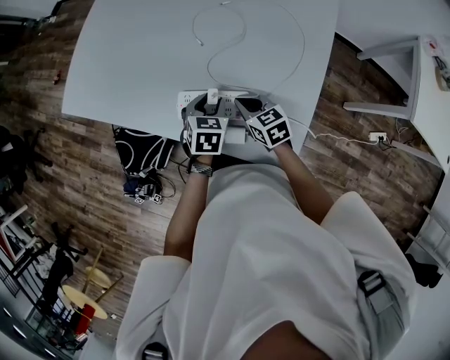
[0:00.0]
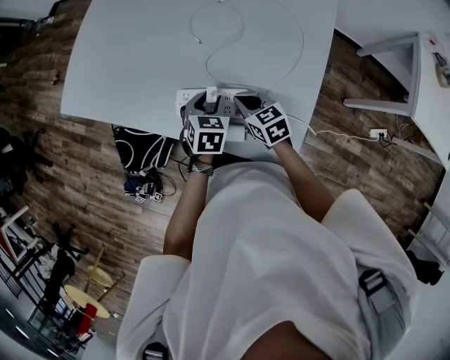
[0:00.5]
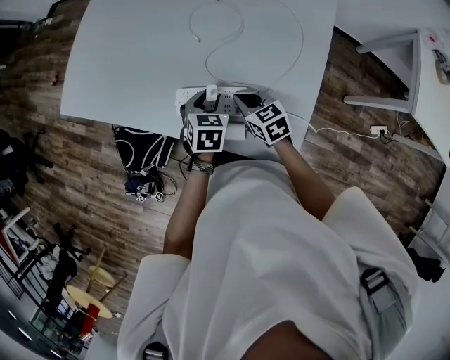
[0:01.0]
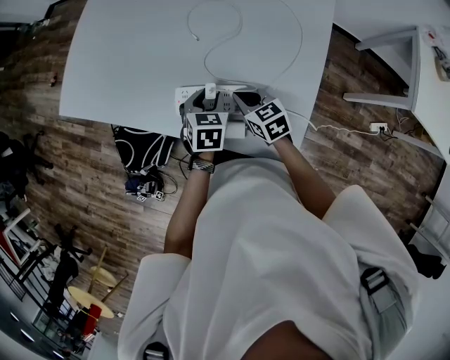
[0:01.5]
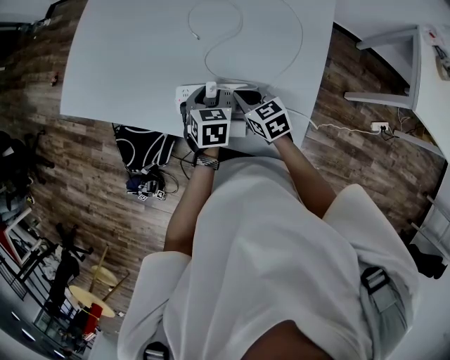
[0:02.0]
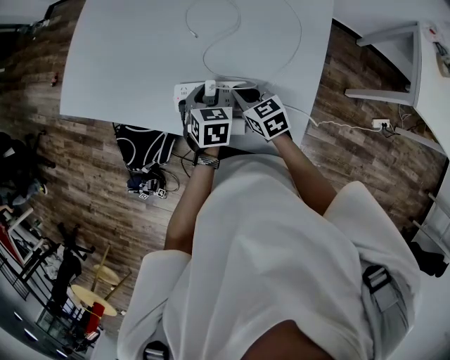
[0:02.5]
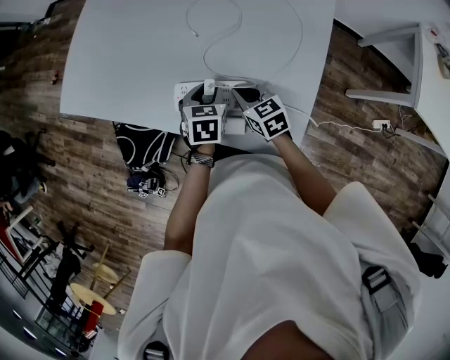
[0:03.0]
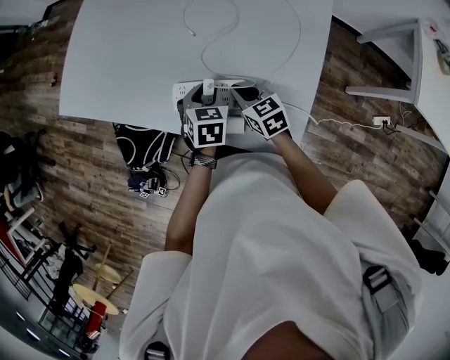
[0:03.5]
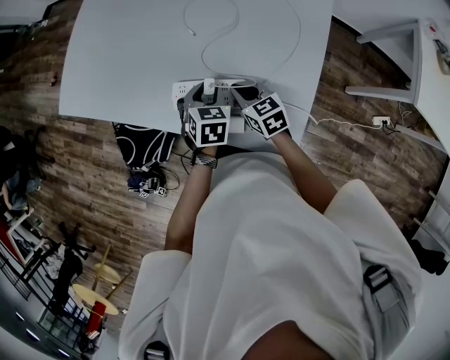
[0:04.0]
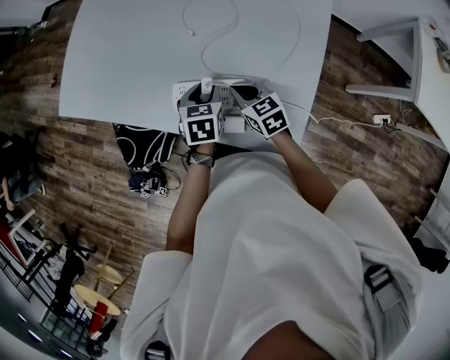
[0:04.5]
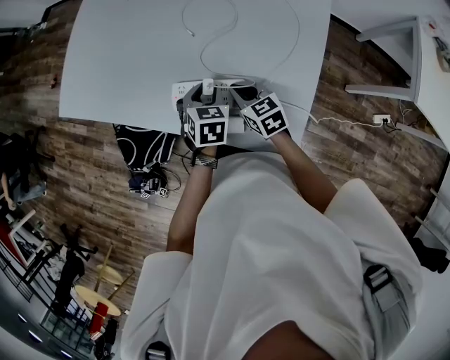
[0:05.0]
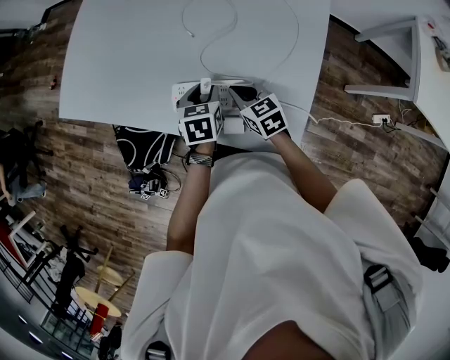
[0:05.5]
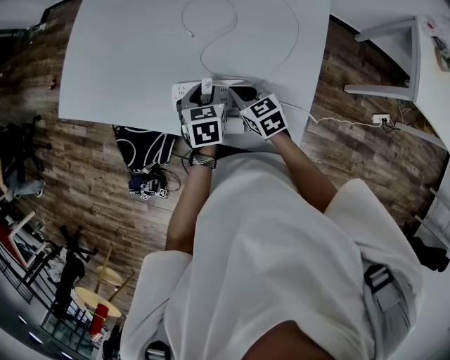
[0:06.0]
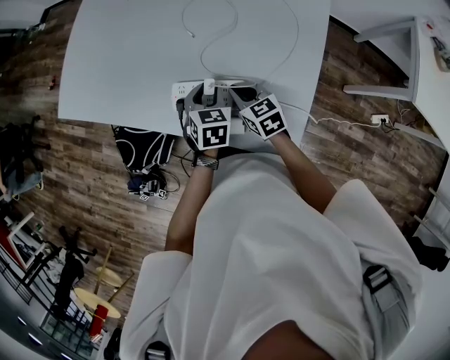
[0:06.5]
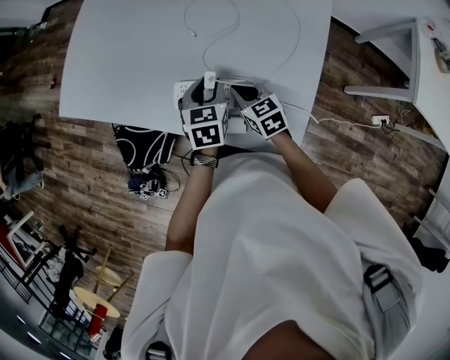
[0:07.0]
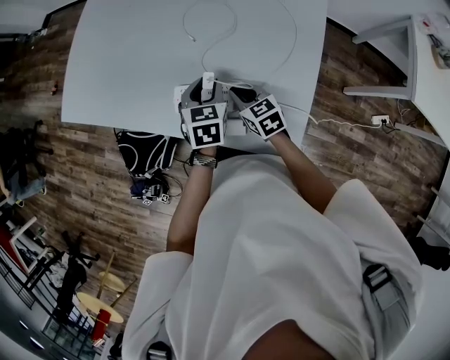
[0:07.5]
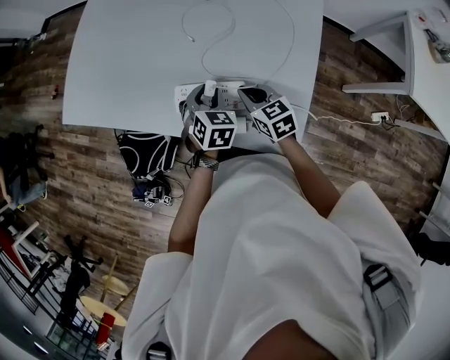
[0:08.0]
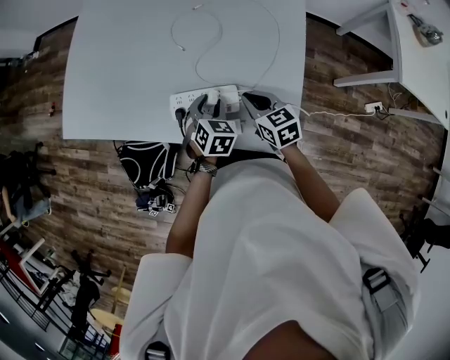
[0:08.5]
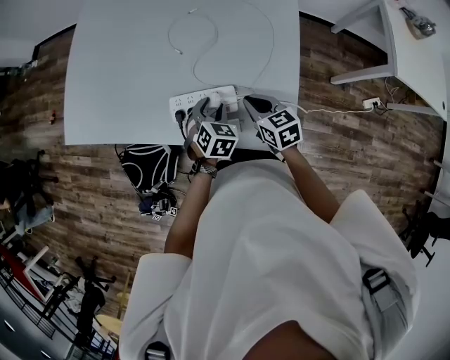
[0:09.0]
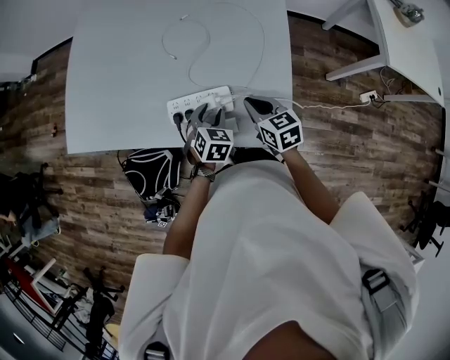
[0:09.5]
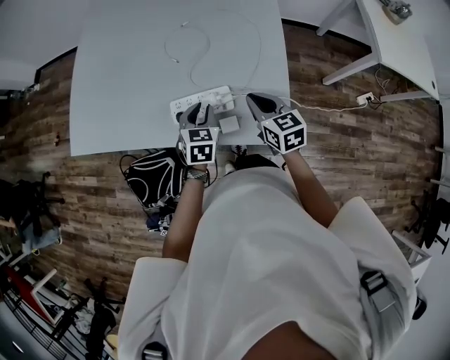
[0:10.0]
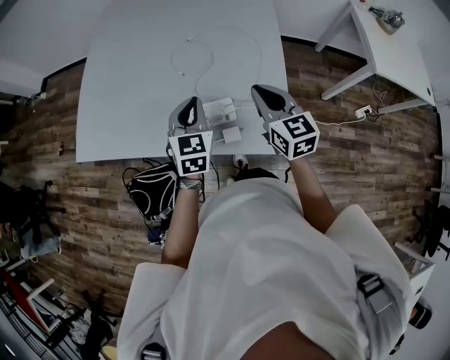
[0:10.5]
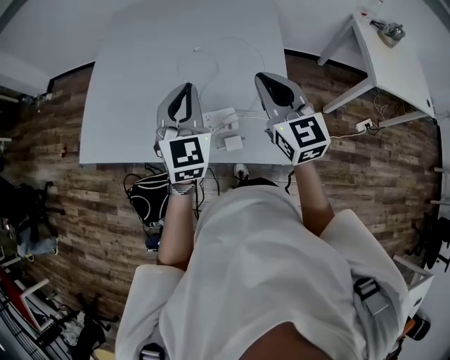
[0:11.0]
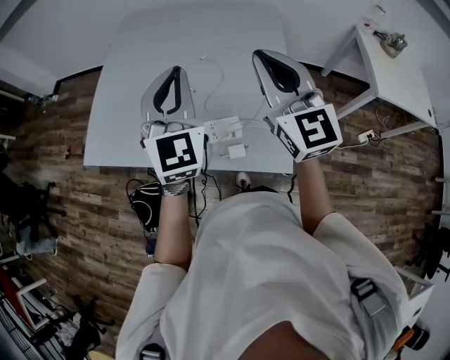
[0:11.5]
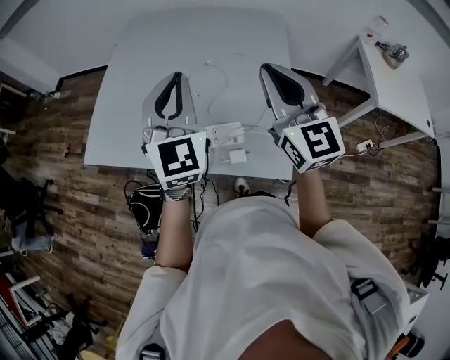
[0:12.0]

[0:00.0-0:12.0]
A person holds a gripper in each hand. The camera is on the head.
0:00.0 to 0:06.0: The grippers stay close to where they were, moving slightly.
0:06.0 to 0:08.0: The left gripper changes its angle by approximately 20 degrees.
0:08.0 to 0:10.0: The left gripper travels upward by approximately 5 cm; the right gripper is displaced upward, backward and to the right by about 15 cm, and changes its angle by roughly 20 degrees.
0:10.0 to 0:12.0: Both grippers travel together upward, roughly 35 cm. The left gripper tilts its fingers approximately 40 degrees upward, and closes its fingers. Meanwhile the right gripper points its fingers approximately 40 degrees further upward.

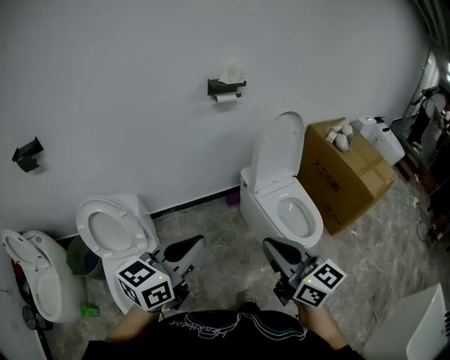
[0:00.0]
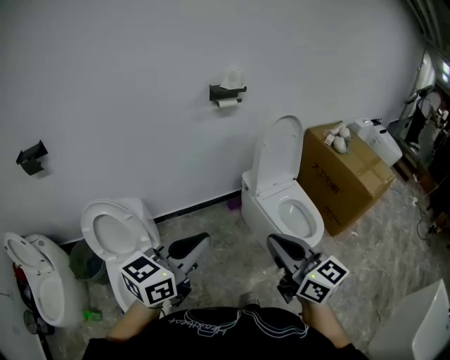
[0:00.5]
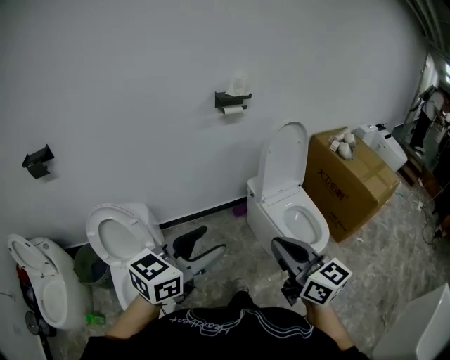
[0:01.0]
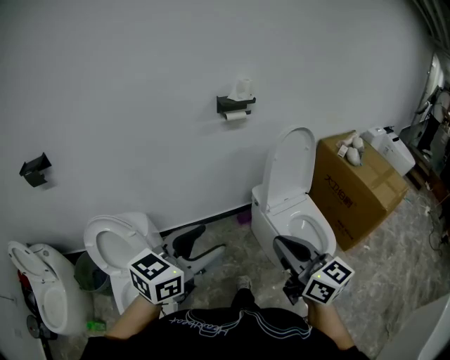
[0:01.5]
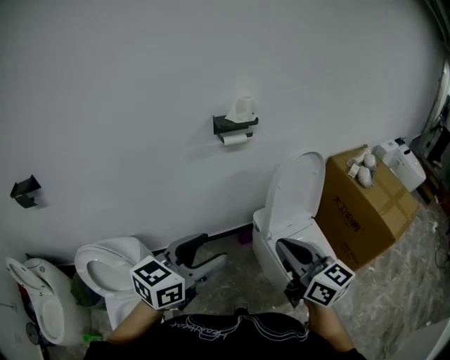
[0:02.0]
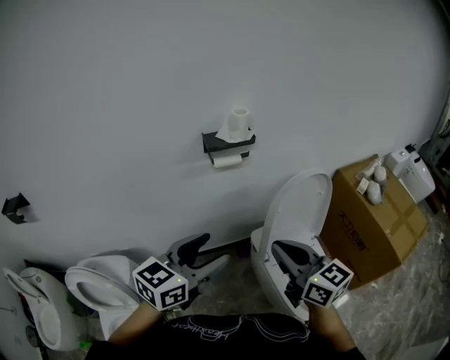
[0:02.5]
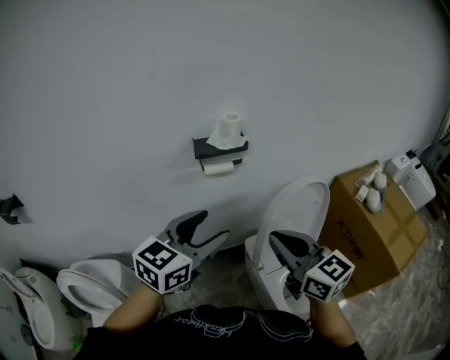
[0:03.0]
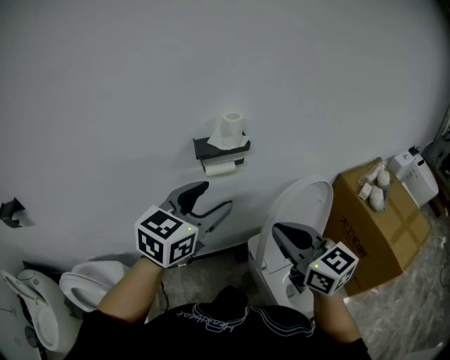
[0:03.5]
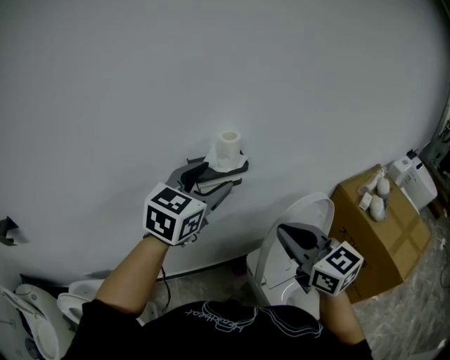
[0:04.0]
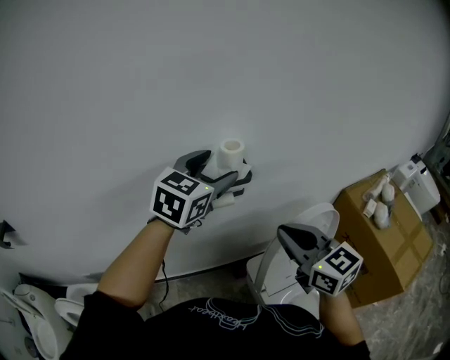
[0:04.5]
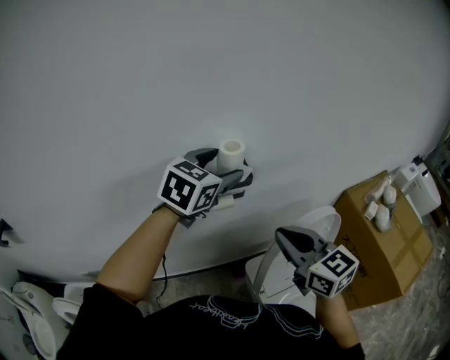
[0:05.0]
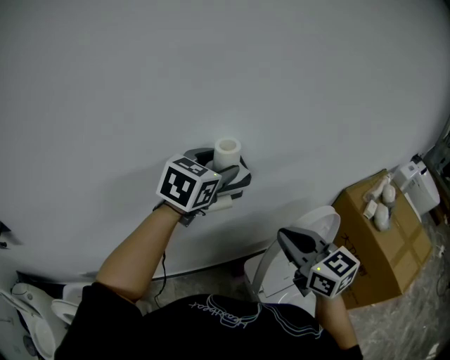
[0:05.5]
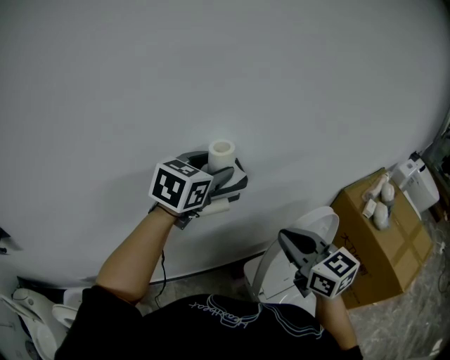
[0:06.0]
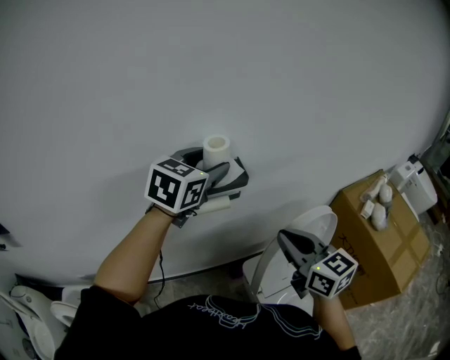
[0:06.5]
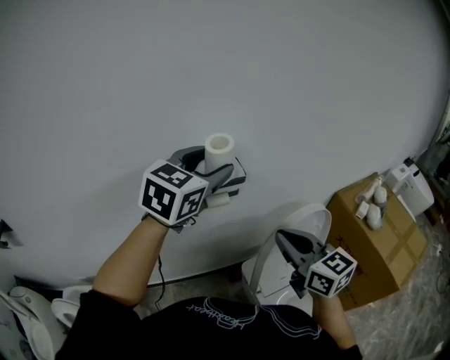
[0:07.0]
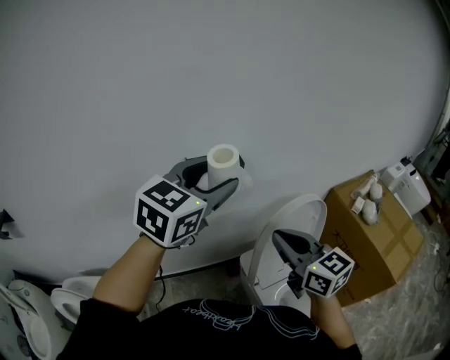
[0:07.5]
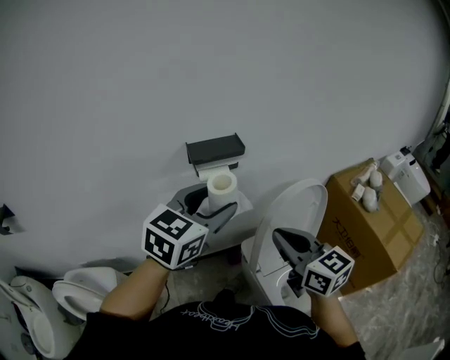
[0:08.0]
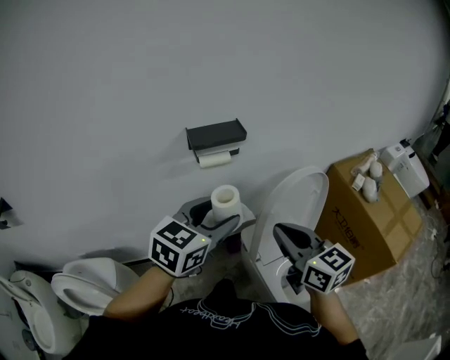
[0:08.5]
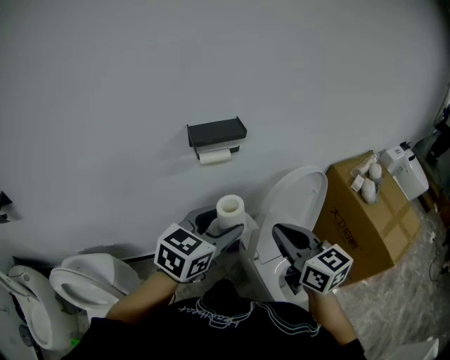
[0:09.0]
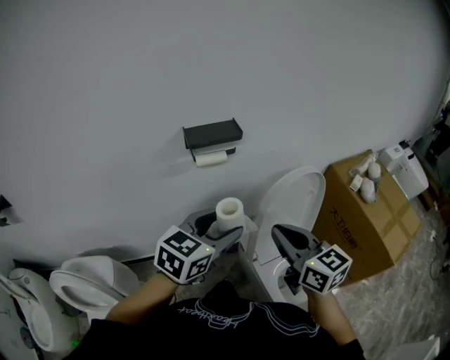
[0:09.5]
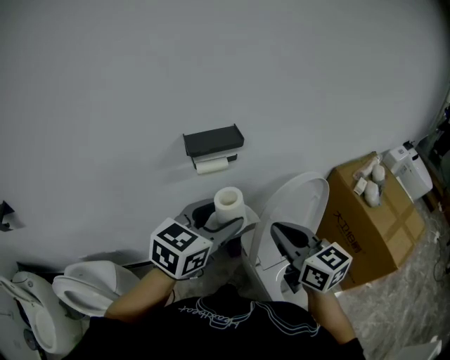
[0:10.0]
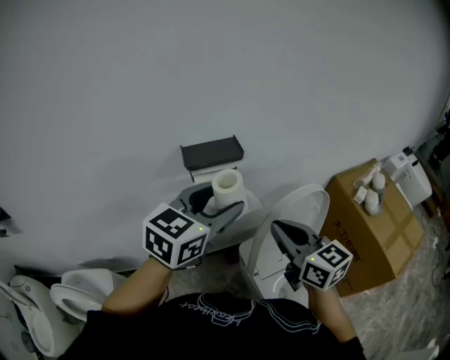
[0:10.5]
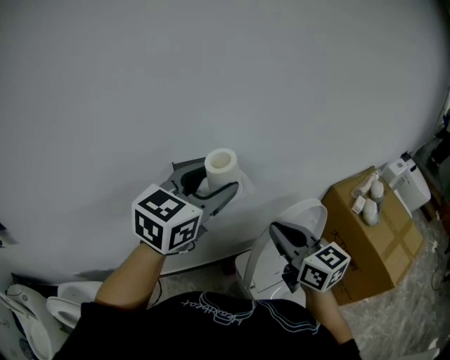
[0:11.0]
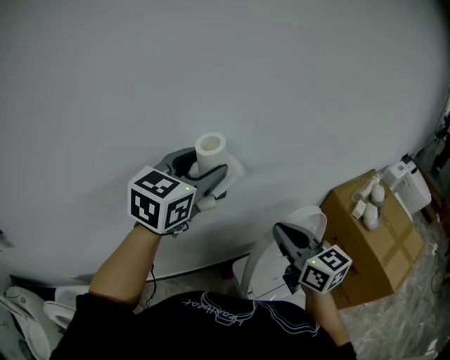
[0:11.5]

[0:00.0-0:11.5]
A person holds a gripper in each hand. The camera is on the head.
0:00.0 to 0:02.0: The grippers both shift forward by approximately 25 cm. The left gripper opens its fingers.
0:02.0 to 0:04.0: The grippers both shift forward by about 35 cm. The left gripper swivels approximately 30 degrees.
0:04.0 to 0:06.0: The right gripper shifts approximately 10 cm forward, while the left gripper travels forward by approximately 15 cm.
0:06.0 to 0:07.5: The right gripper is displaced backward by some 10 cm. The left gripper goes roughly 20 cm backward and upward.
0:07.5 to 0:09.5: The left gripper travels downward and backward by approximately 20 cm. Meanwhile the right gripper moves about 5 cm.
0:09.5 to 0:11.5: The right gripper moves forward, about 15 cm. Meanwhile the left gripper travels forward and upward by some 25 cm.

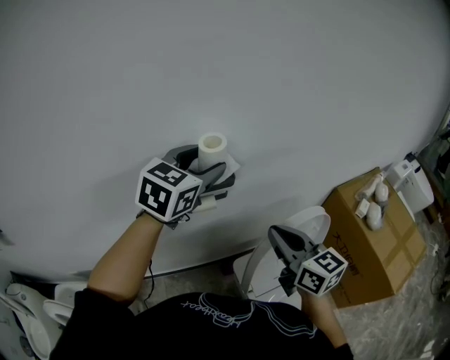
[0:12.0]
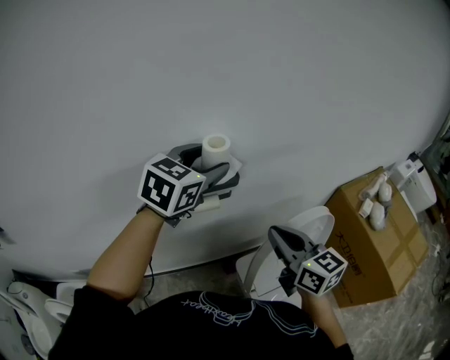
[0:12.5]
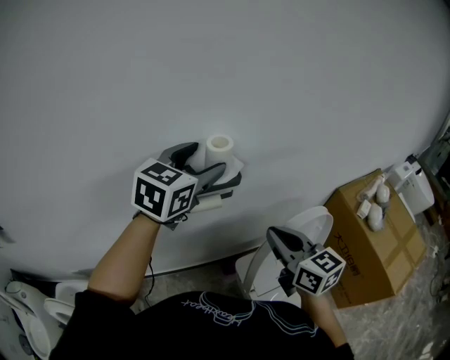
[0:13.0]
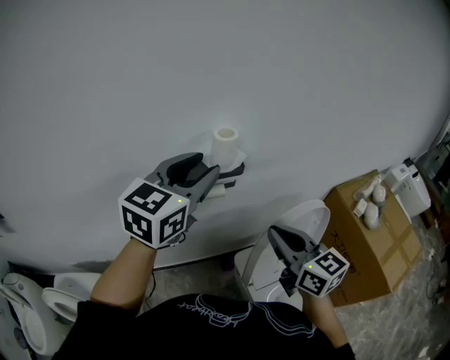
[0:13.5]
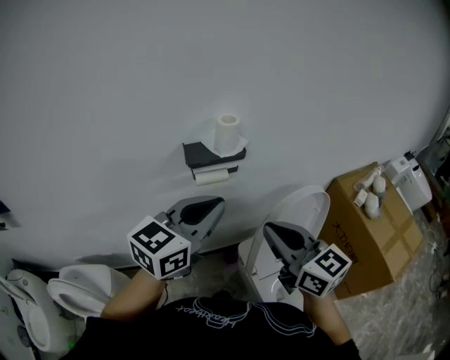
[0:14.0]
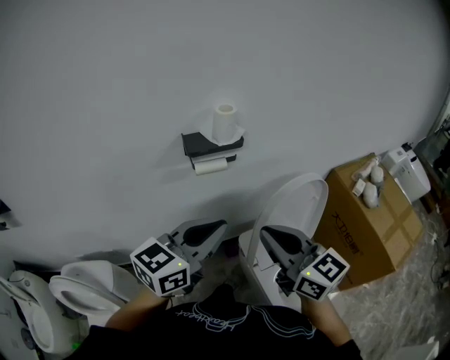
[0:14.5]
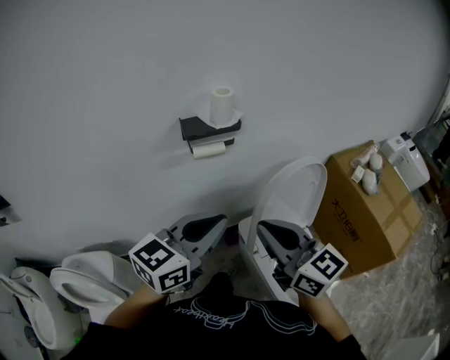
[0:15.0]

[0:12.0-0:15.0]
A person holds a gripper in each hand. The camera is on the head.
0:12.0 to 0:13.5: The right gripper changes place by about 5 cm. Meanwhile the left gripper travels backward by roughly 10 cm.
0:13.5 to 0:15.0: The left gripper heads backward and downward, covering approximately 25 cm, swivels some 20 degrees, and closes, while the right gripper travels backward by approximately 15 cm.
